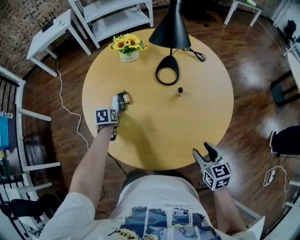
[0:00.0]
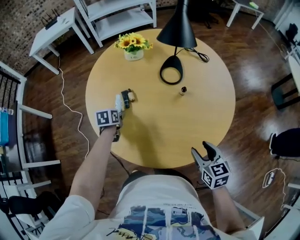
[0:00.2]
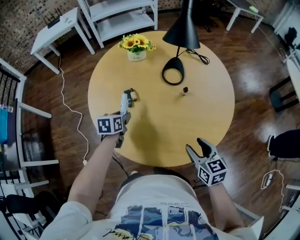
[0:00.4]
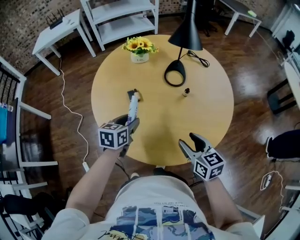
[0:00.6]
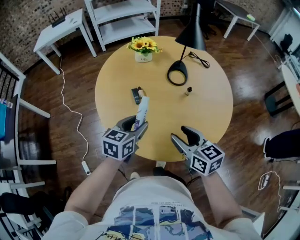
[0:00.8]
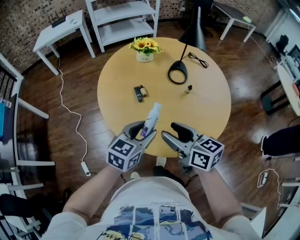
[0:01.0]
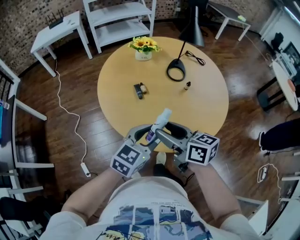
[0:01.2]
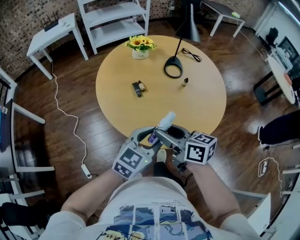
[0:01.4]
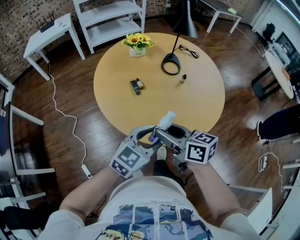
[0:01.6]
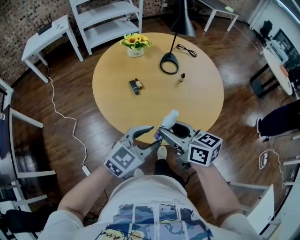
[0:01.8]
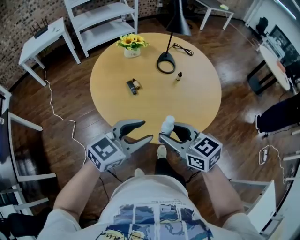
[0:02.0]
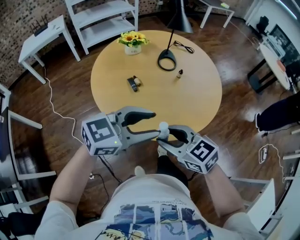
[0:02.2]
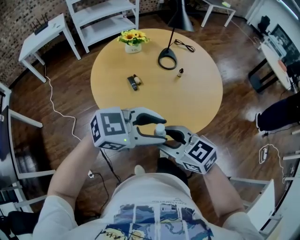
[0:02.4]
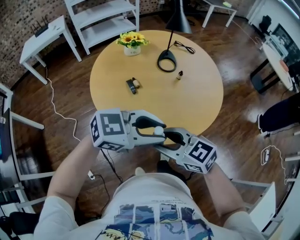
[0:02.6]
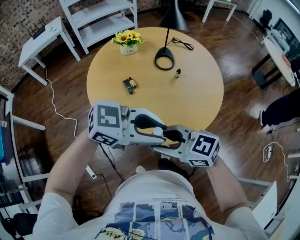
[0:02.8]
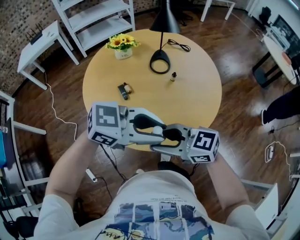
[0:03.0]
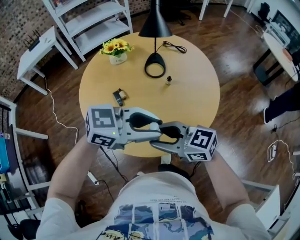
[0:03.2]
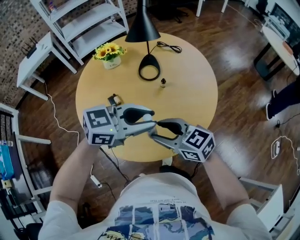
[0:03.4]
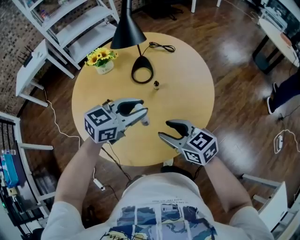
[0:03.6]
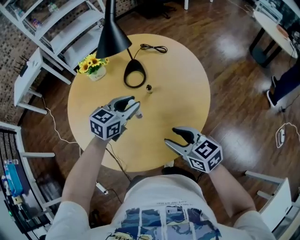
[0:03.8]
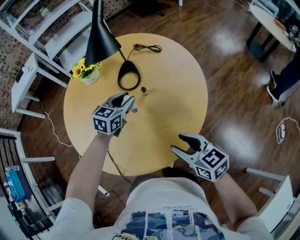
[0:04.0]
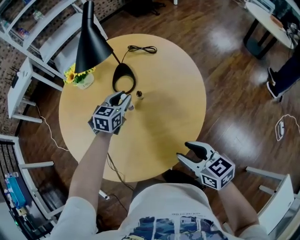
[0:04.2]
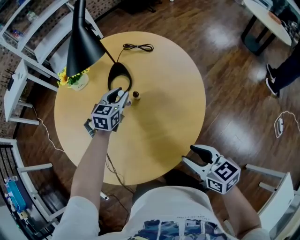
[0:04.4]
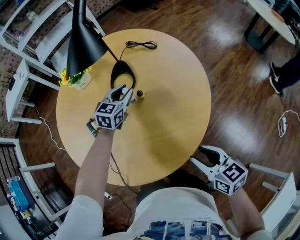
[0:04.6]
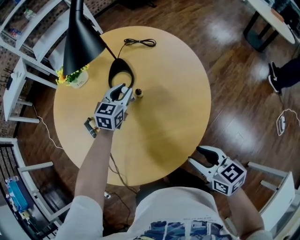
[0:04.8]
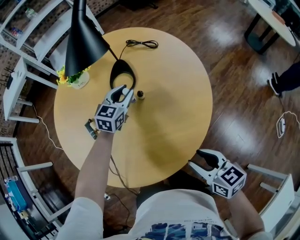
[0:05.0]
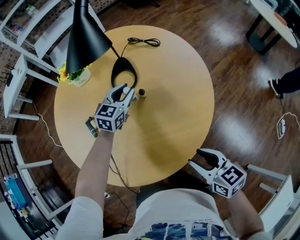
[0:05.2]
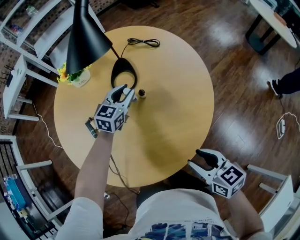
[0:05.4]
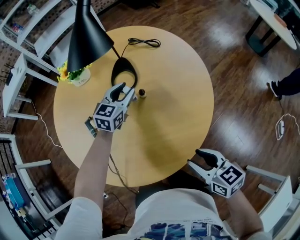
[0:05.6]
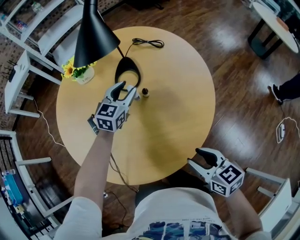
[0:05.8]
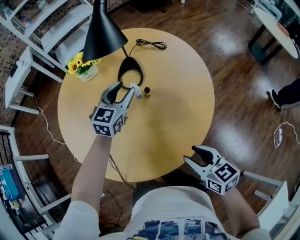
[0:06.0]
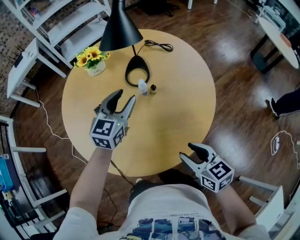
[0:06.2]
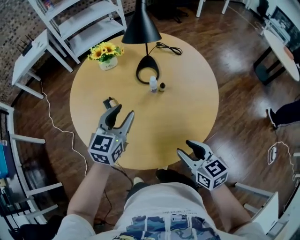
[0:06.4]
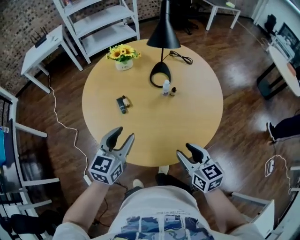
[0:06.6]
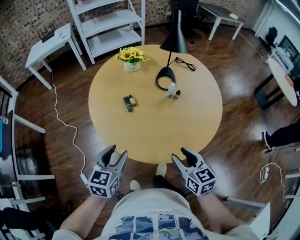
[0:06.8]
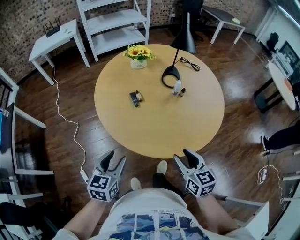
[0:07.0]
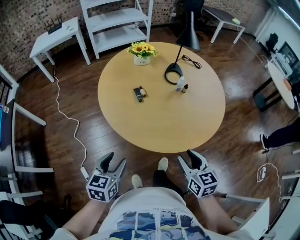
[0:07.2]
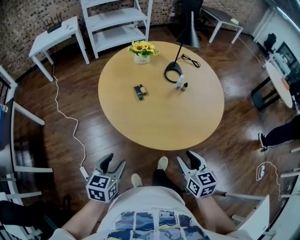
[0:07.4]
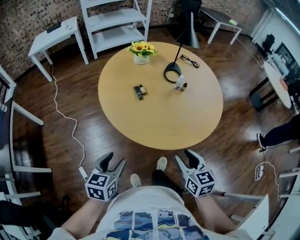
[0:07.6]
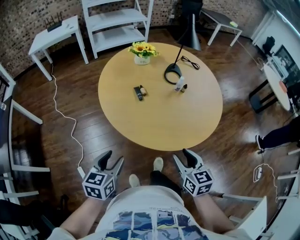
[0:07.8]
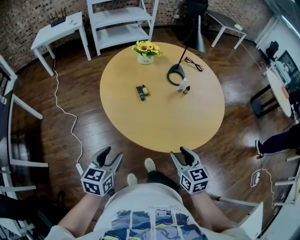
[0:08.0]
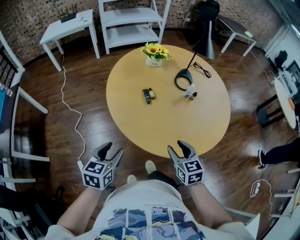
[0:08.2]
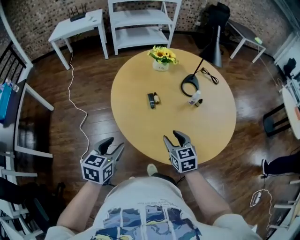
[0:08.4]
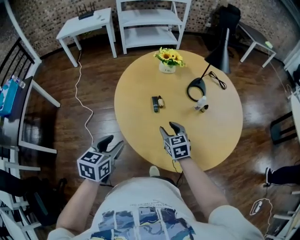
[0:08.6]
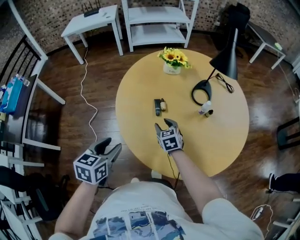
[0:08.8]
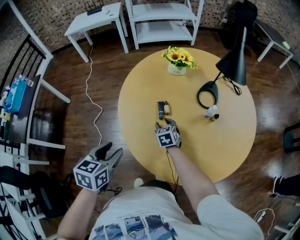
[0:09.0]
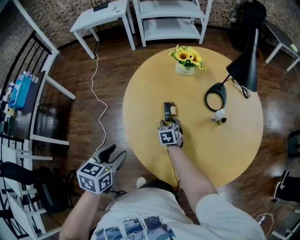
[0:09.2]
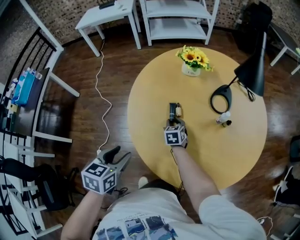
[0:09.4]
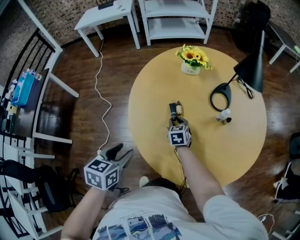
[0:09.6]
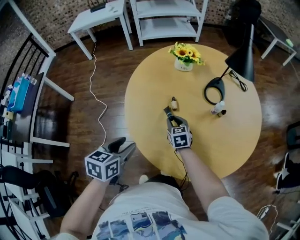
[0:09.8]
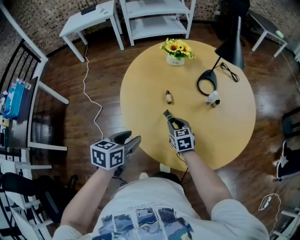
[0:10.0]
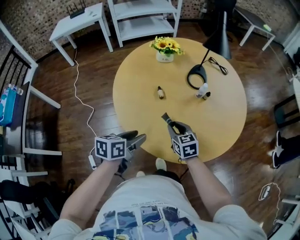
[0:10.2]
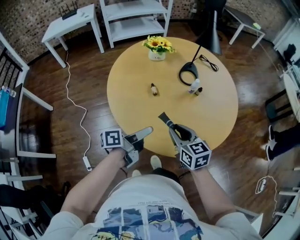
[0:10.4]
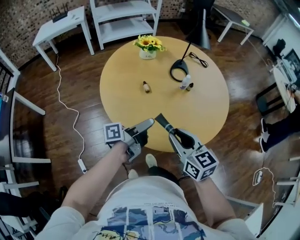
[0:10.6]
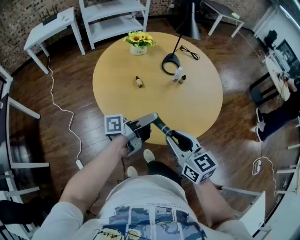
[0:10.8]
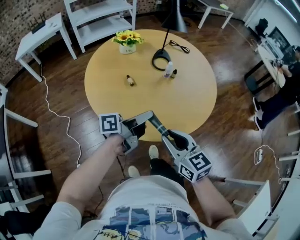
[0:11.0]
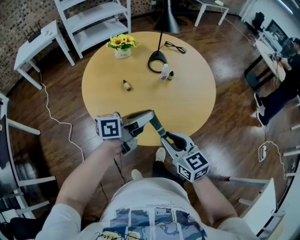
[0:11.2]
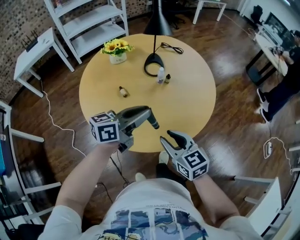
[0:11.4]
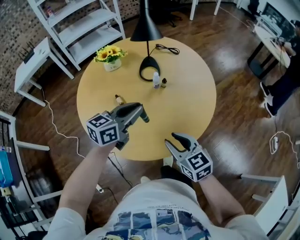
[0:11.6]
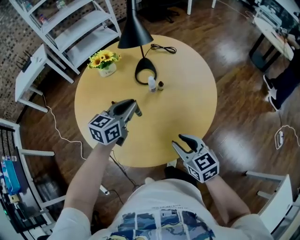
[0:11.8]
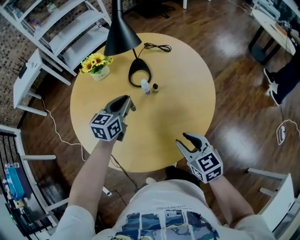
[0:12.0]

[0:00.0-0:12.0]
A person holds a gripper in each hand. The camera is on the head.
0:00.0 to 0:01.6: The left gripper shifts about 40 cm backward and upward, and angles its fingers upward, by about 40 degrees; the right gripper is displaced to the left by about 35 cm, and changes its angle by about 30 degrees.
0:01.6 to 0:03.0: The right gripper changes its angle by some 30 degrees. Meanwhile the left gripper goes approximately 10 cm upward, and changes its angle by some 50 degrees.
0:03.0 to 0:04.4: The right gripper changes place by roughly 35 cm, and rotates roughly 50 degrees; the left gripper ends up roughly 50 cm from where it was, and changes its angle by about 60 degrees.
0:04.4 to 0:06.0: The left gripper travels upward by some 5 cm.
0:06.0 to 0:07.6: The right gripper moves to the left and backward, some 30 cm; the left gripper moves backward and to the left, some 60 cm, and swivels some 30 degrees.
0:07.6 to 0:09.0: The right gripper goes some 40 cm forward and downward, and rotates roughly 30 degrees, while the left gripper is displaced forward by about 20 cm.
0:09.0 to 0:10.4: The right gripper shifts some 30 cm backward and upward, and changes its angle by about 20 degrees, while the left gripper moves to the right, some 10 cm, and points its fingers approximately 30 degrees further upward.
0:10.4 to 0:12.0: The right gripper moves to the right, approximately 25 cm, while the left gripper is displaced forward and to the right by approximately 35 cm, rotates around the line of its fingers by some 70 degrees, clockwise from behind, and closes its fingers.

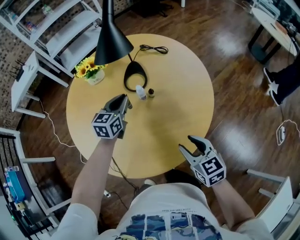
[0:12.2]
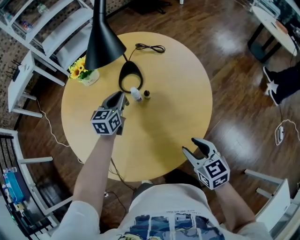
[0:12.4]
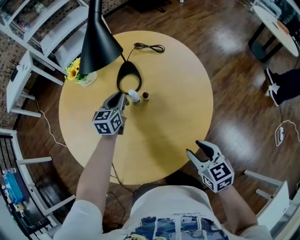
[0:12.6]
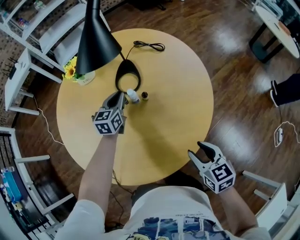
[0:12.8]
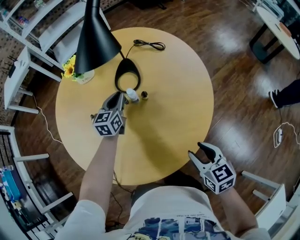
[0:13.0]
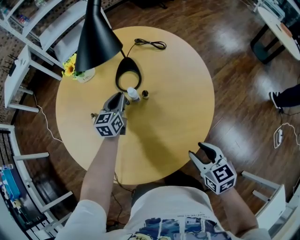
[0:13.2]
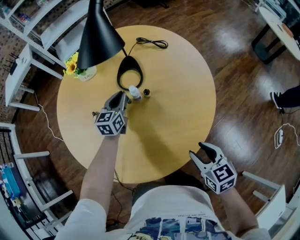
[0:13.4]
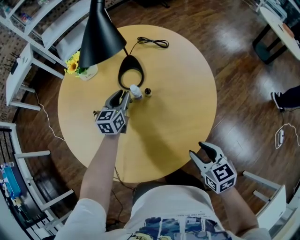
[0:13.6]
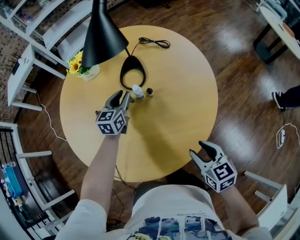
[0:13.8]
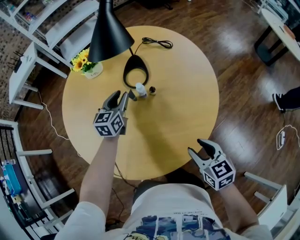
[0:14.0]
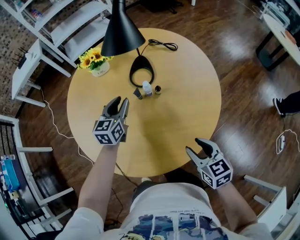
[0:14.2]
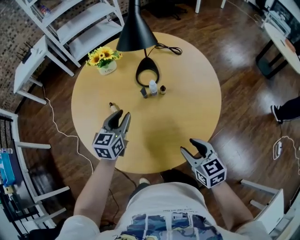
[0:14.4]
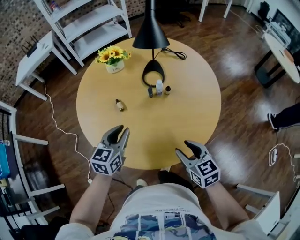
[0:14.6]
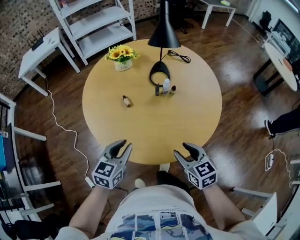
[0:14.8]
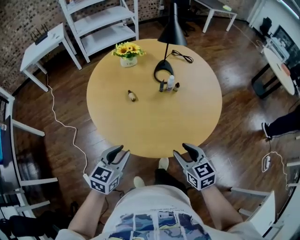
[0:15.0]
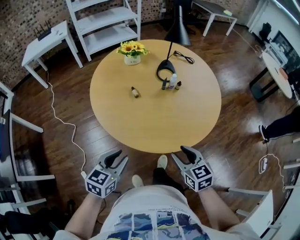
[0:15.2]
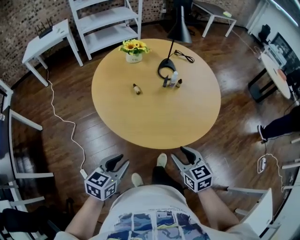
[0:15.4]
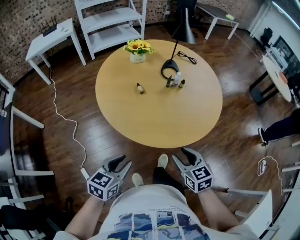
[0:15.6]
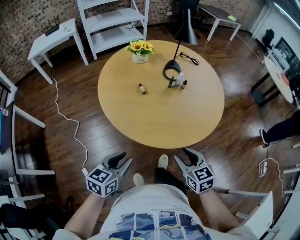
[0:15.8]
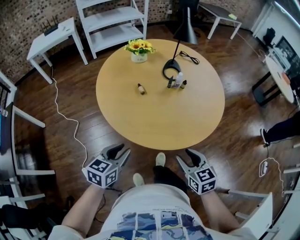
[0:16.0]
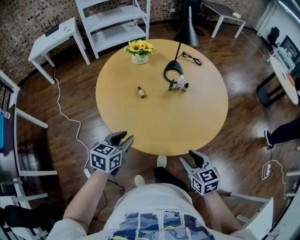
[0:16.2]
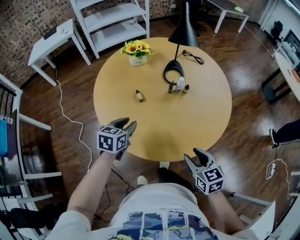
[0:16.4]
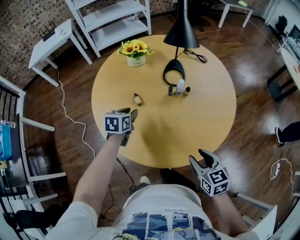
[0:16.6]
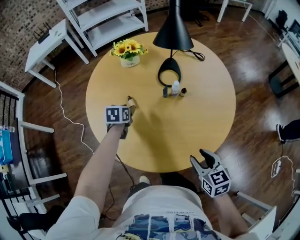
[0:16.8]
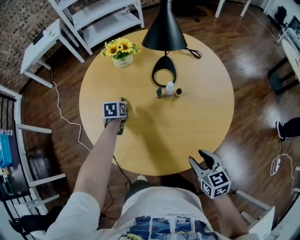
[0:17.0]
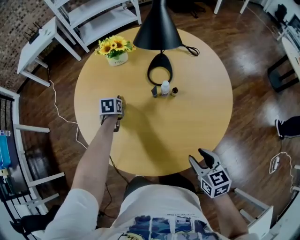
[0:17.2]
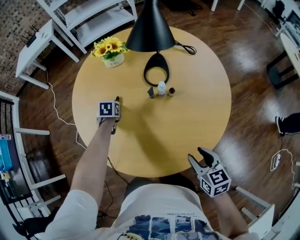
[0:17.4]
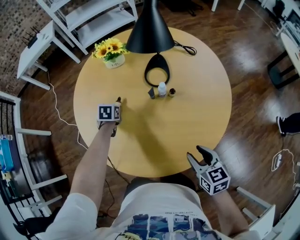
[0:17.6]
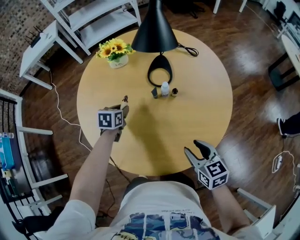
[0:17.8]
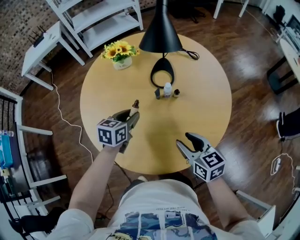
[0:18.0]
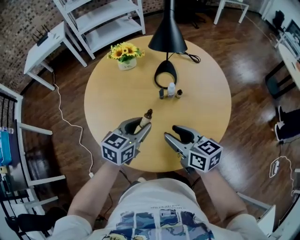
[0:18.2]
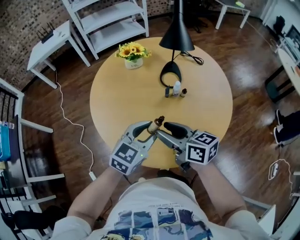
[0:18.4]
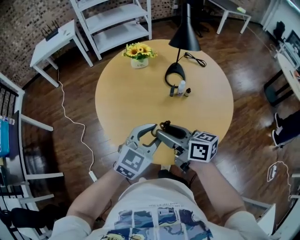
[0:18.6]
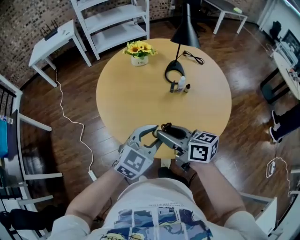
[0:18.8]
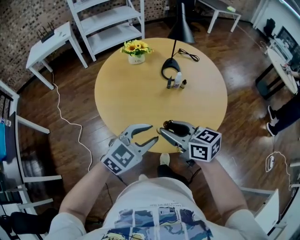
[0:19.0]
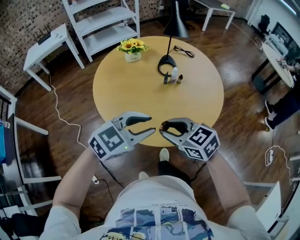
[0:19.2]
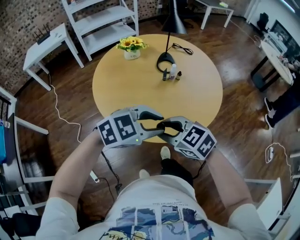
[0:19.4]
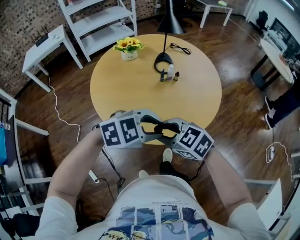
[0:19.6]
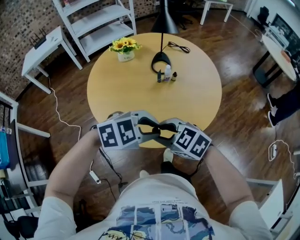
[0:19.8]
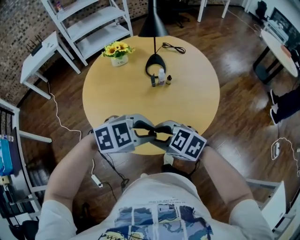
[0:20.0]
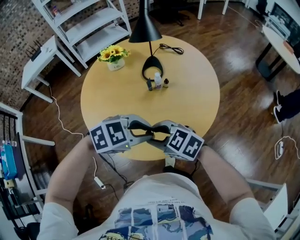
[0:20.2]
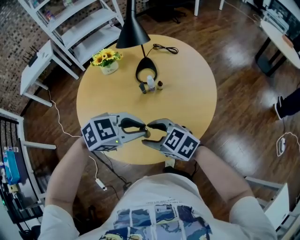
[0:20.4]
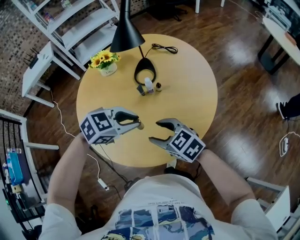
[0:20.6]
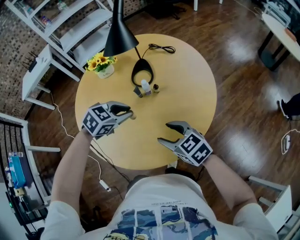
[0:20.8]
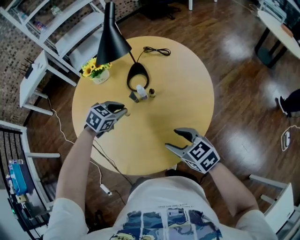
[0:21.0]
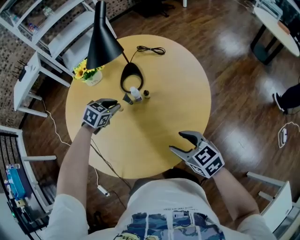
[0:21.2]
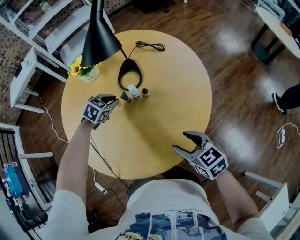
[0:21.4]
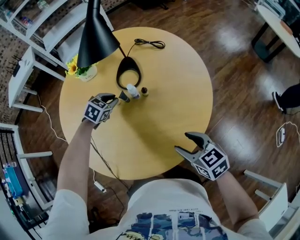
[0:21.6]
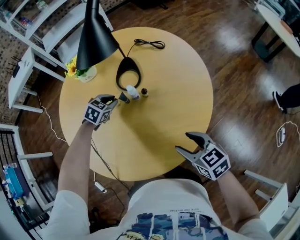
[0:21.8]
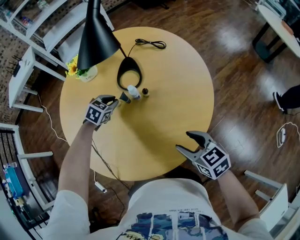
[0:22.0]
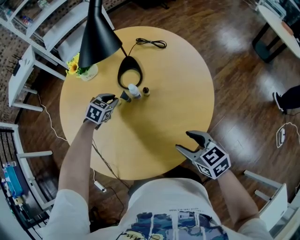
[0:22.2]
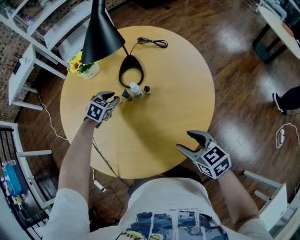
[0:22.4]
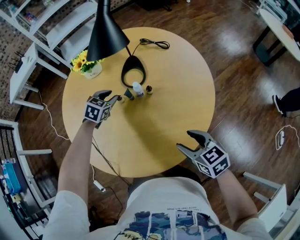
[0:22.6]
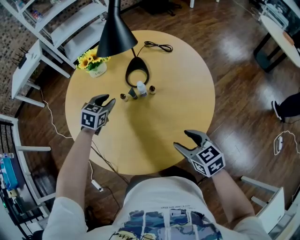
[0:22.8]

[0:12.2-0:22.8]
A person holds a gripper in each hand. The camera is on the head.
0:12.2 to 0:13.8: The left gripper shifts about 10 cm downward and forward. Meanwhile the right gripper goes approximately 5 cm to the right.
0:13.8 to 0:15.2: The right gripper moves to the left and backward, roughly 30 cm. Meanwhile the left gripper shifts approximately 50 cm backward and to the left.
0:15.2 to 0:16.8: The right gripper heads forward and to the right, covering about 20 cm, while the left gripper goes approximately 40 cm forward, and changes its angle by roughly 30 degrees.
0:16.8 to 0:18.2: The left gripper moves upward, backward and to the right, approximately 20 cm, and swivels roughly 30 degrees. The right gripper is displaced forward, to the left and upward by approximately 15 cm, and changes its angle by some 30 degrees.
0:18.2 to 0:19.8: The right gripper ends up about 20 cm from where it was, and swivels about 40 degrees, while the left gripper changes place by some 25 cm, and turns by roughly 60 degrees.
0:19.8 to 0:21.2: The right gripper changes place by some 30 cm, swivels approximately 30 degrees, and opens. Meanwhile the left gripper shifts by approximately 40 cm, and rotates some 40 degrees.
0:21.2 to 0:22.8: The left gripper travels to the left by roughly 5 cm, and moves about 5 cm downward and comes back.
